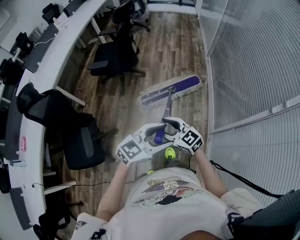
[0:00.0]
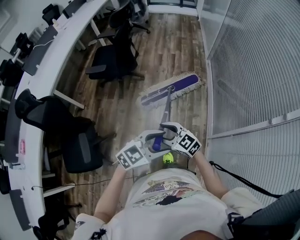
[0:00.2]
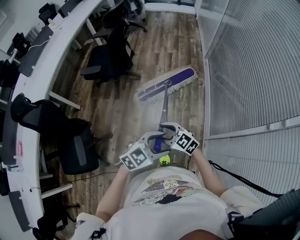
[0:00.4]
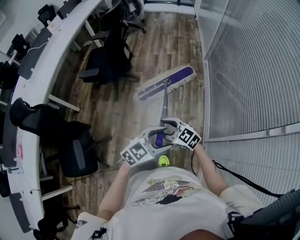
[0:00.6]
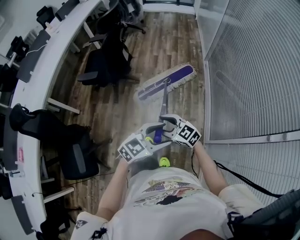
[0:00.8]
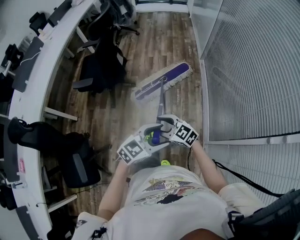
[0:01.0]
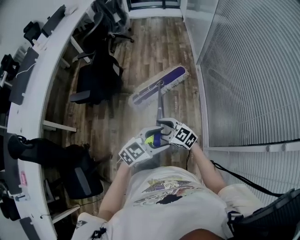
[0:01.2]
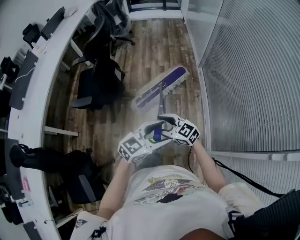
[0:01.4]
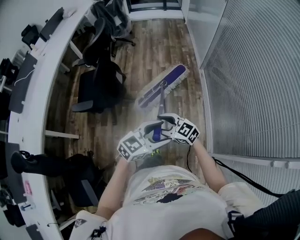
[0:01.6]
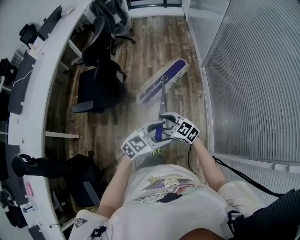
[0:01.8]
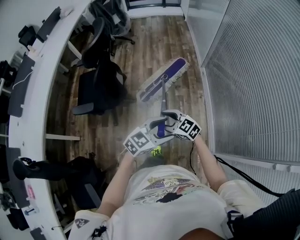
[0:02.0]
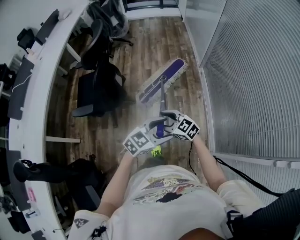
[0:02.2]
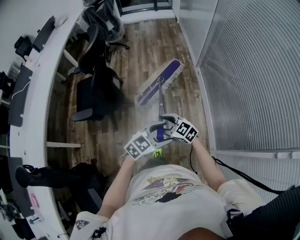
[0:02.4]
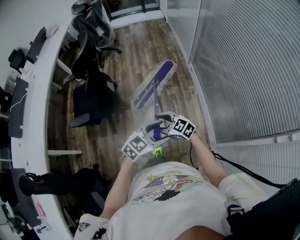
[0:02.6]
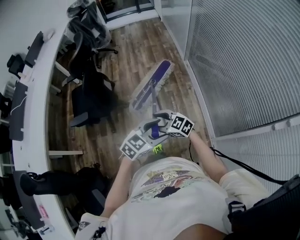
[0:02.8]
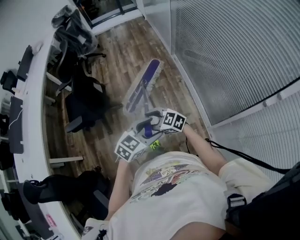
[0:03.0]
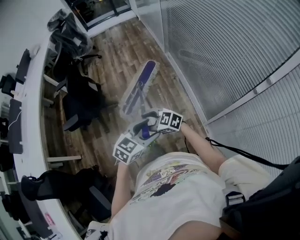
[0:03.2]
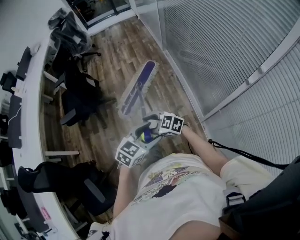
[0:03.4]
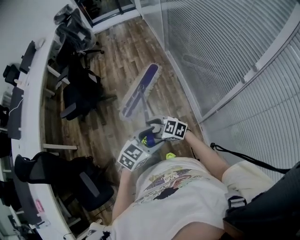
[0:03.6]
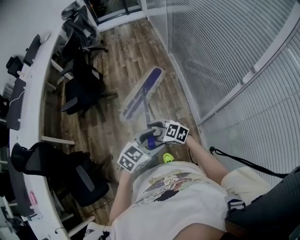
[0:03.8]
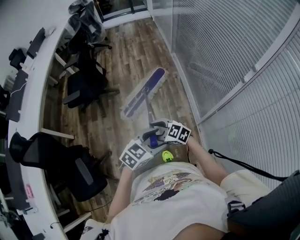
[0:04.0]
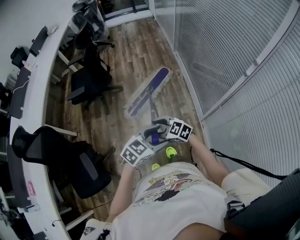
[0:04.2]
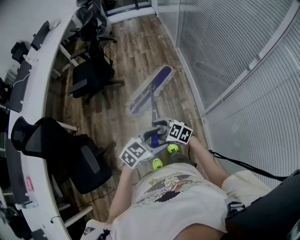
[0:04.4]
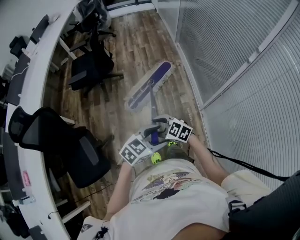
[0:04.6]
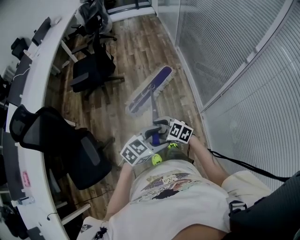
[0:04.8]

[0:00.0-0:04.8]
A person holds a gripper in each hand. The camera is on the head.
0:00.0 to 0:01.6: Both grippers are carried some 40 cm.
0:01.6 to 0:03.2: The right gripper changes place by approximately 15 cm. The left gripper changes place by about 20 cm.
0:03.2 to 0:04.8: Both grippers are carried some 40 cm.

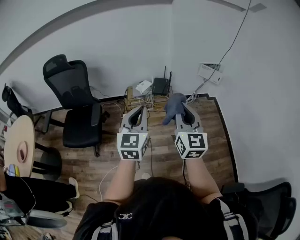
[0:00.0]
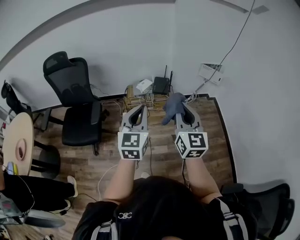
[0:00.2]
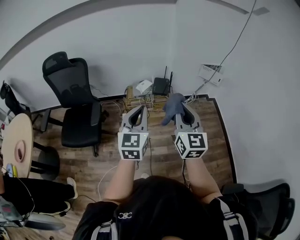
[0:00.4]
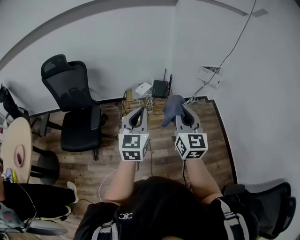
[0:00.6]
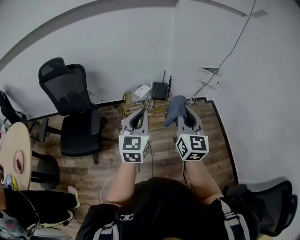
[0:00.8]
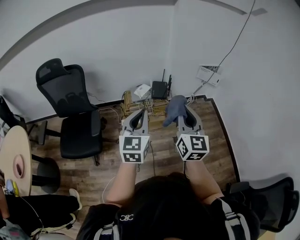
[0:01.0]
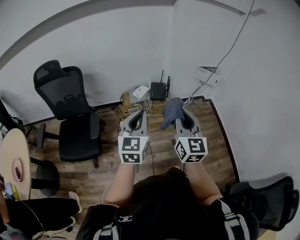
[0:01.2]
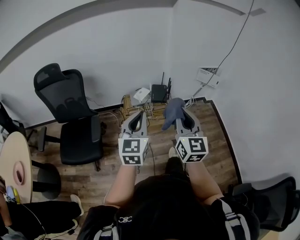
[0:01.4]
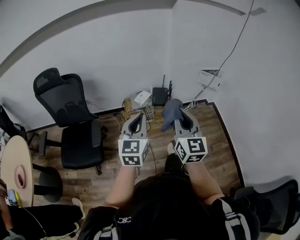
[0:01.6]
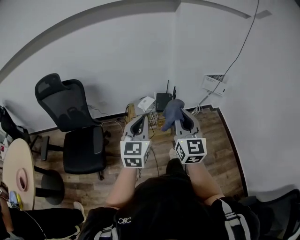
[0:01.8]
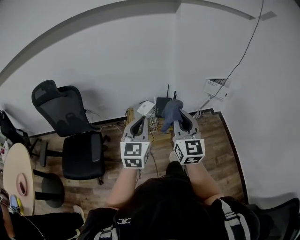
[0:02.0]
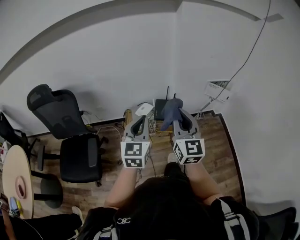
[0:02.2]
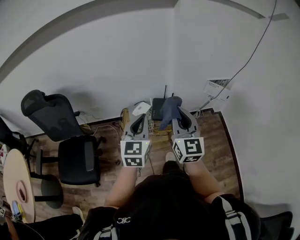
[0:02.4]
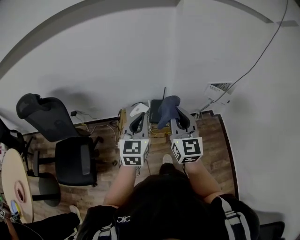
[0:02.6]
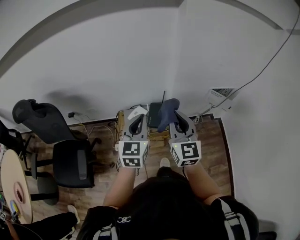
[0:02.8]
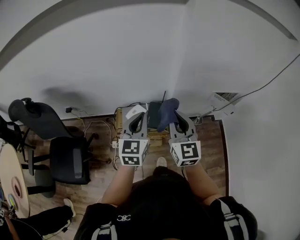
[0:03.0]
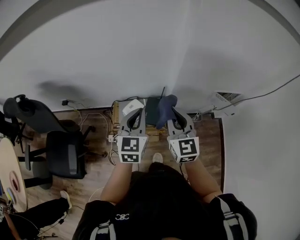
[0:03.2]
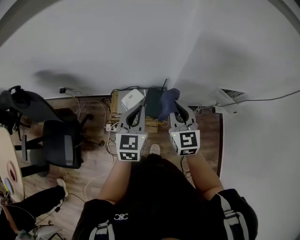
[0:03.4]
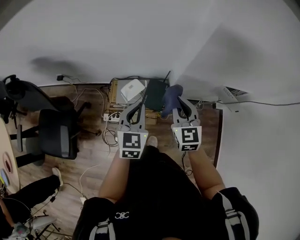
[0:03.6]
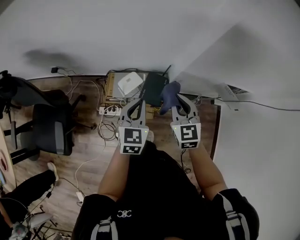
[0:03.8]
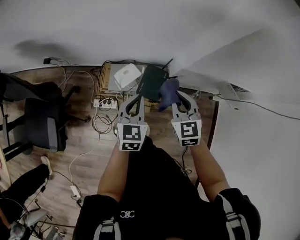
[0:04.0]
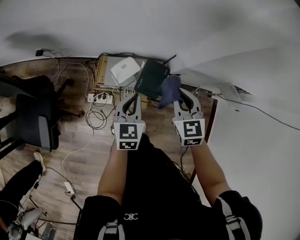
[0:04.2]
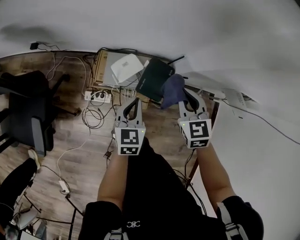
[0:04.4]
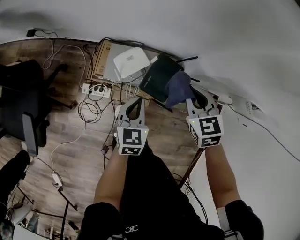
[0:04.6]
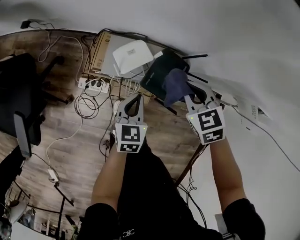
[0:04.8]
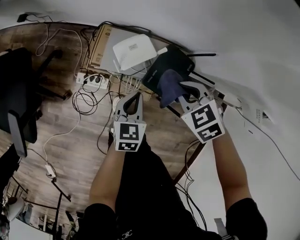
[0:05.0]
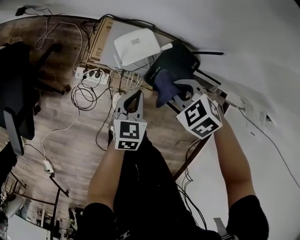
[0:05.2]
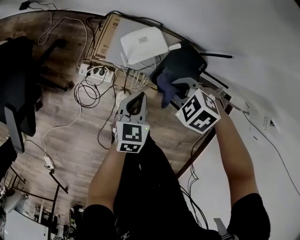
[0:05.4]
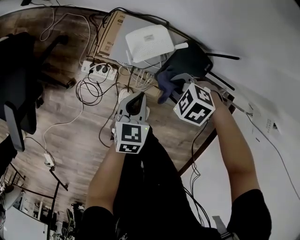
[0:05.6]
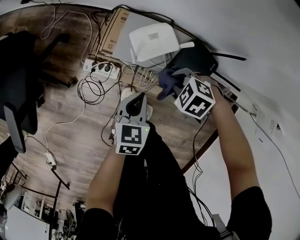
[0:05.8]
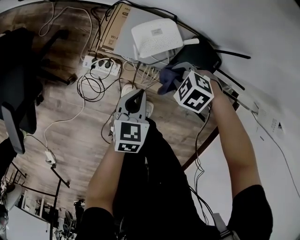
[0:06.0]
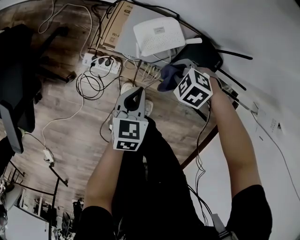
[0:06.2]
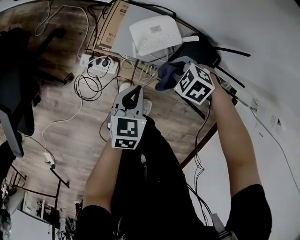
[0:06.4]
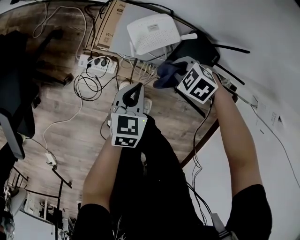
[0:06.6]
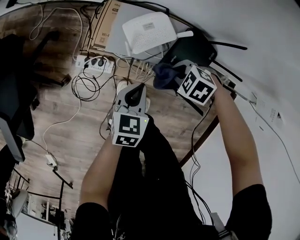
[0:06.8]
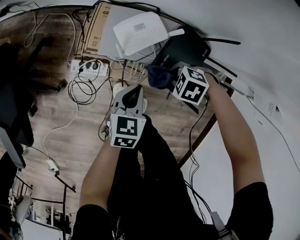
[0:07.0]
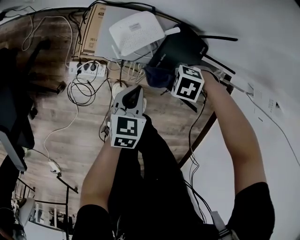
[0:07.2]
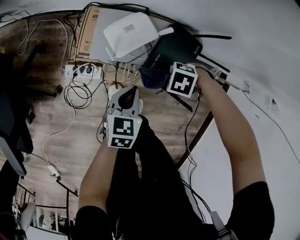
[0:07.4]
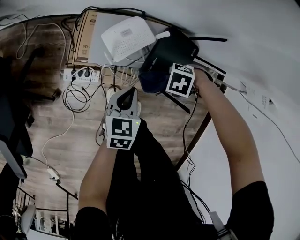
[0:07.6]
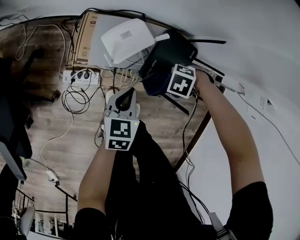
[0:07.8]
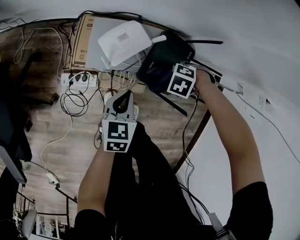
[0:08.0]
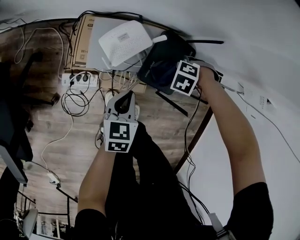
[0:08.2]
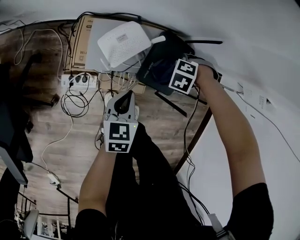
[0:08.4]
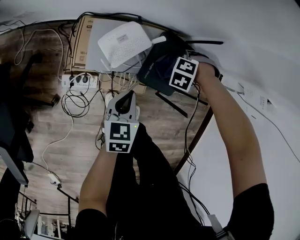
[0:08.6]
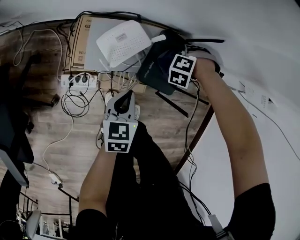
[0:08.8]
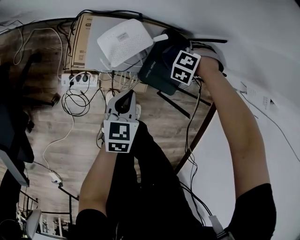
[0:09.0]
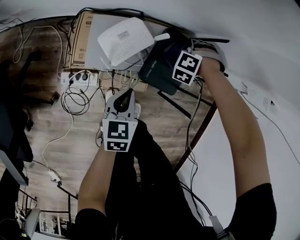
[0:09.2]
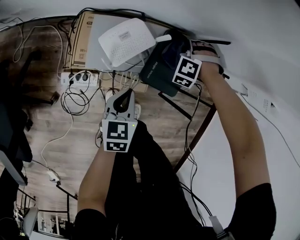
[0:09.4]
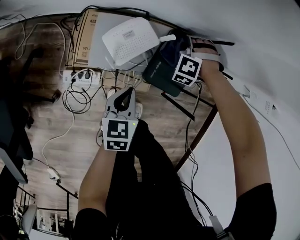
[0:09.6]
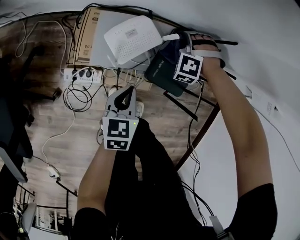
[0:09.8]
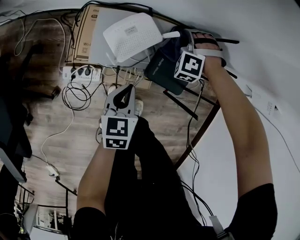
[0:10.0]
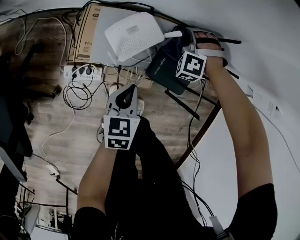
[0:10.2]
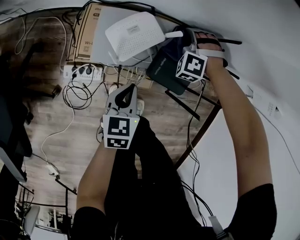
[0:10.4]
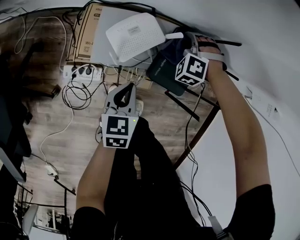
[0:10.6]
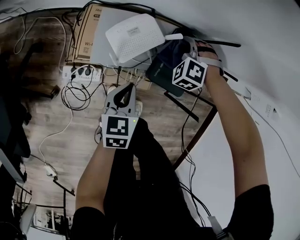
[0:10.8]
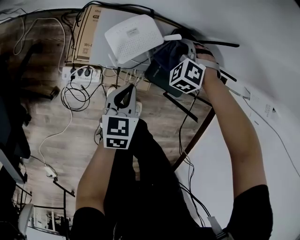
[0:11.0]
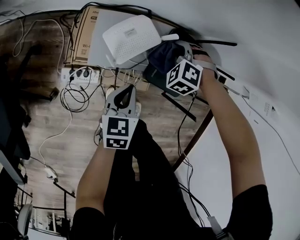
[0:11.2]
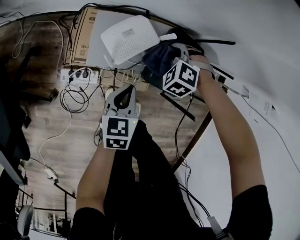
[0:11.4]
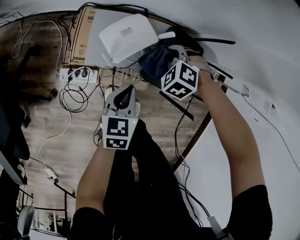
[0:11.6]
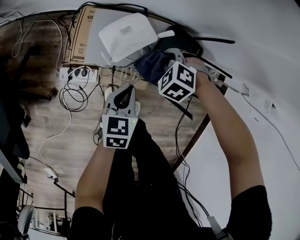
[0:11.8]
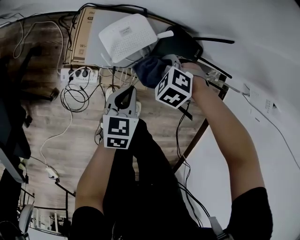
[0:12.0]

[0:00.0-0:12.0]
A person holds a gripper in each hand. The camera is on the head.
0:00.0 to 0:01.6: The left gripper ends up about 15 cm from where it was.
0:01.6 to 0:03.0: The left gripper shifts by some 40 cm.
0:03.0 to 0:04.4: The left gripper is displaced downward by approximately 35 cm, and changes its angle by some 30 degrees.
0:04.4 to 0:06.0: The left gripper moves downward, approximately 25 cm.

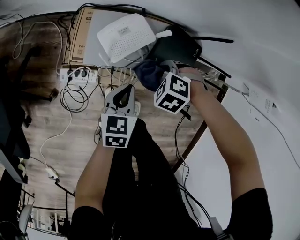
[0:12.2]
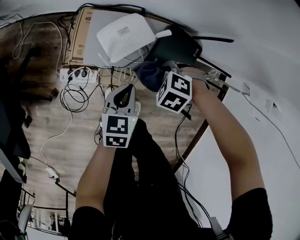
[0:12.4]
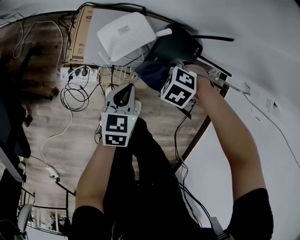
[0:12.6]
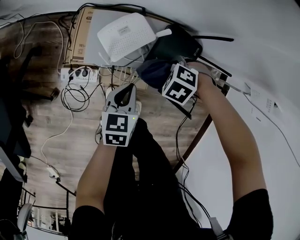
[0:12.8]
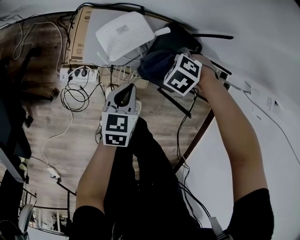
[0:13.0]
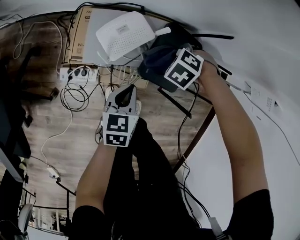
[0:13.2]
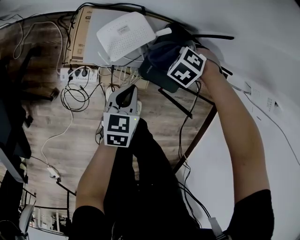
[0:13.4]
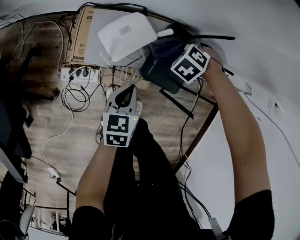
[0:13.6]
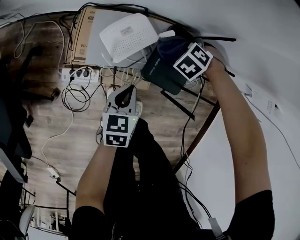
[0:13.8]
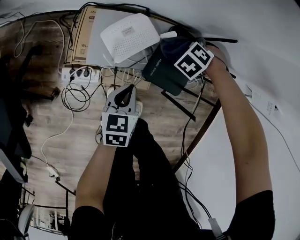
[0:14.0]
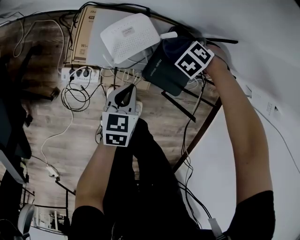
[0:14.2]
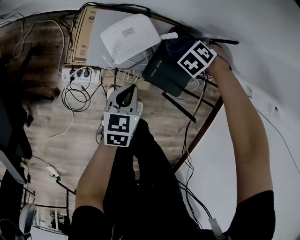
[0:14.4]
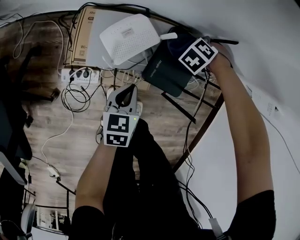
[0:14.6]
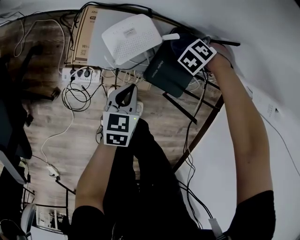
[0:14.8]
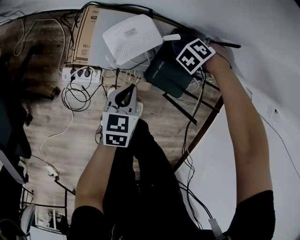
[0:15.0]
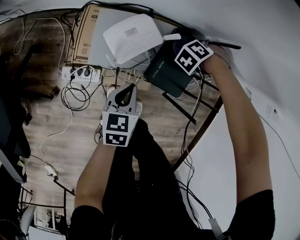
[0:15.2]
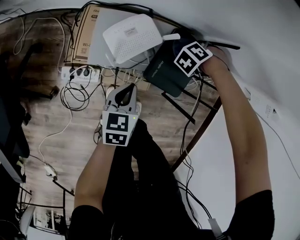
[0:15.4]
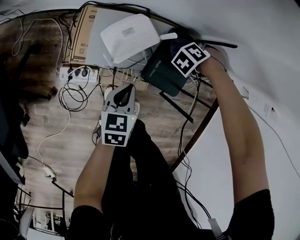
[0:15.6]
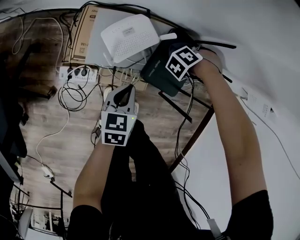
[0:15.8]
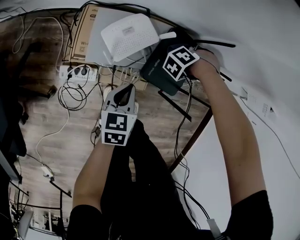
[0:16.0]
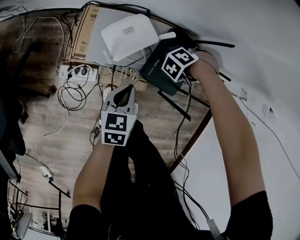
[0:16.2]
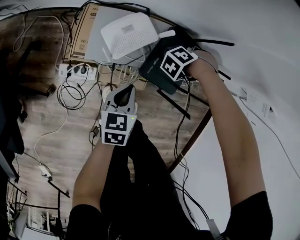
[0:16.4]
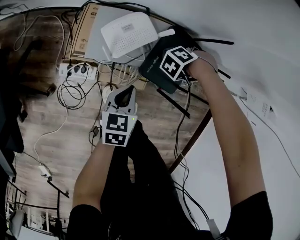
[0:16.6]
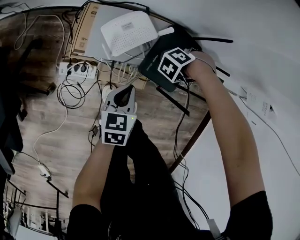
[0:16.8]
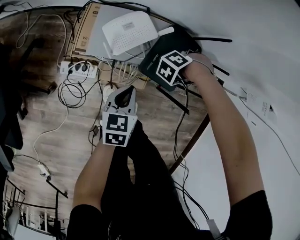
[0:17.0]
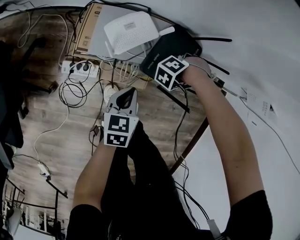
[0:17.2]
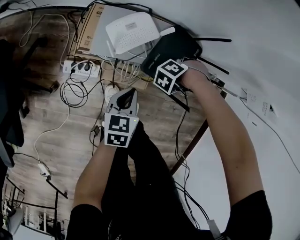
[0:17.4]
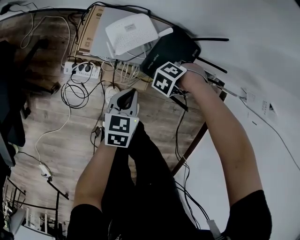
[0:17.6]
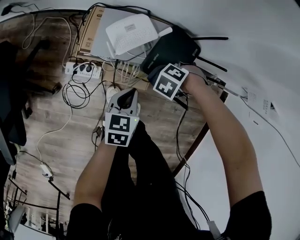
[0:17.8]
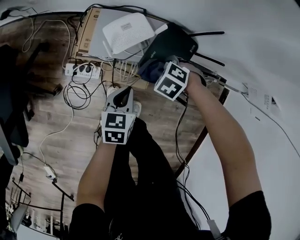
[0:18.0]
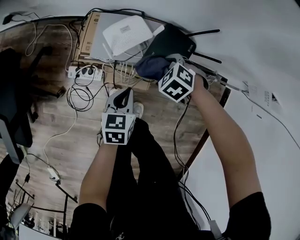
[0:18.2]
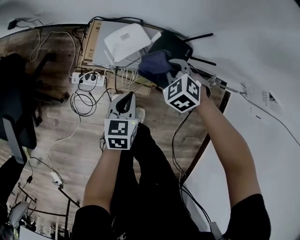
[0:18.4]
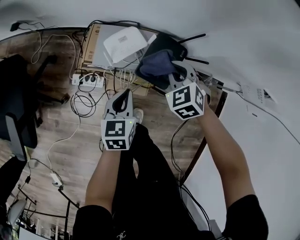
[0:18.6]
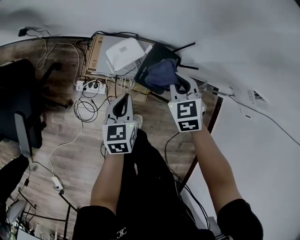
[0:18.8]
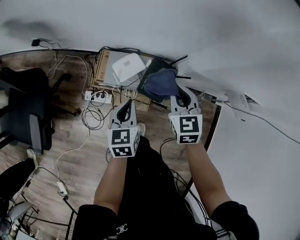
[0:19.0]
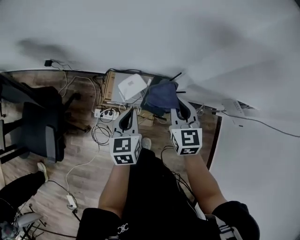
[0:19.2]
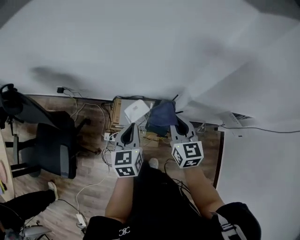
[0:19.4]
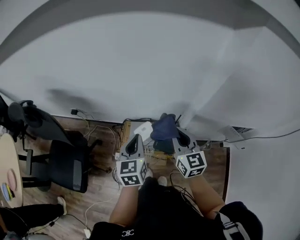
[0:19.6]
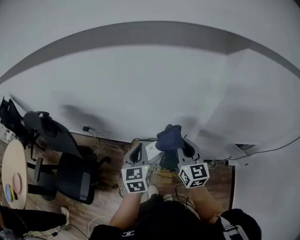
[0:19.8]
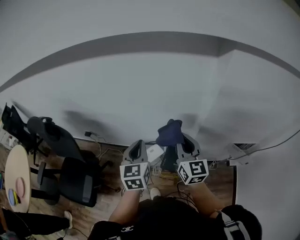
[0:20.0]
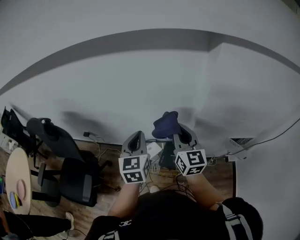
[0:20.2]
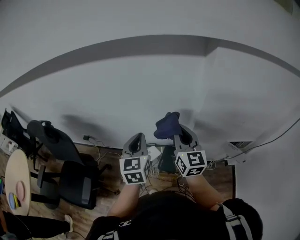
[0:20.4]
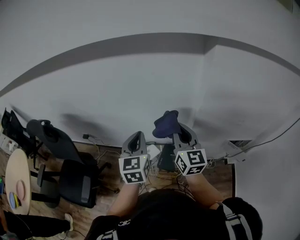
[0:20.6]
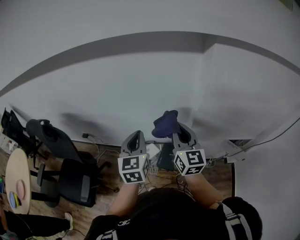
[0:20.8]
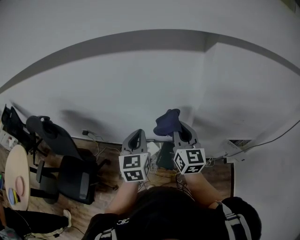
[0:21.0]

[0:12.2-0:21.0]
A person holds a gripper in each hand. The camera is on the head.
0:18.0 to 0:19.6: The left gripper shifts roughly 50 cm upward, and rotates about 30 degrees.
0:19.6 to 0:21.0: The left gripper goes approximately 15 cm upward.
